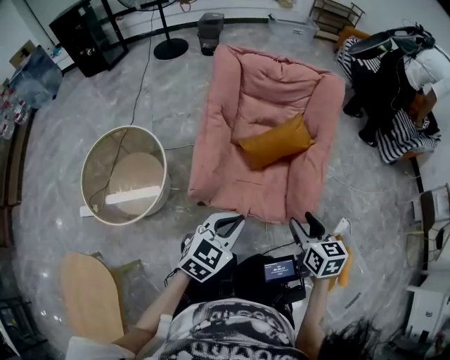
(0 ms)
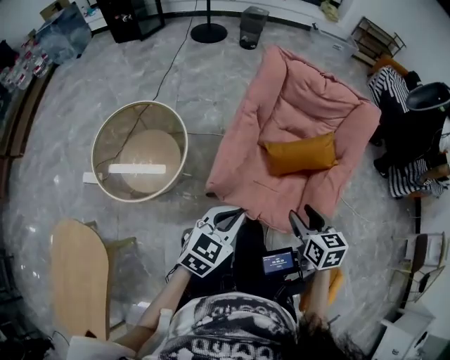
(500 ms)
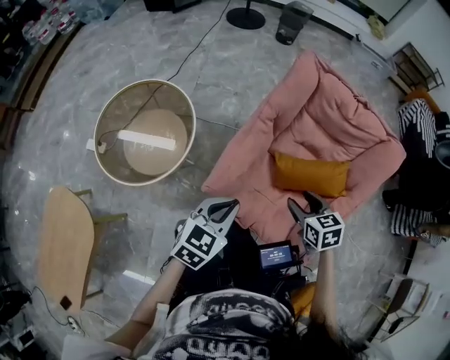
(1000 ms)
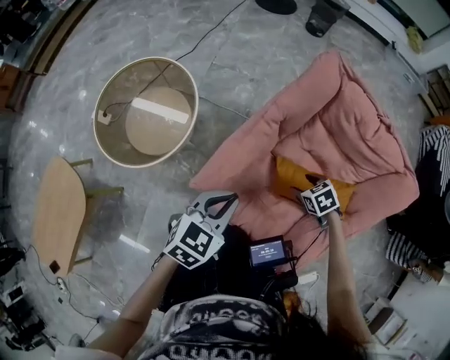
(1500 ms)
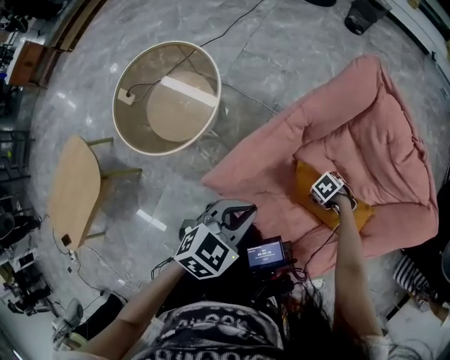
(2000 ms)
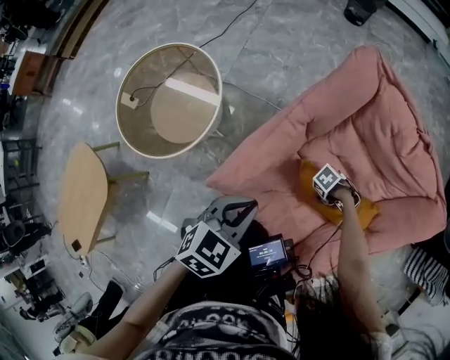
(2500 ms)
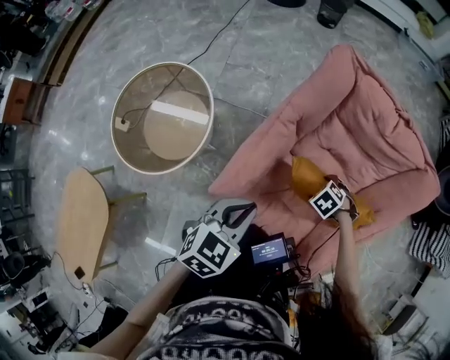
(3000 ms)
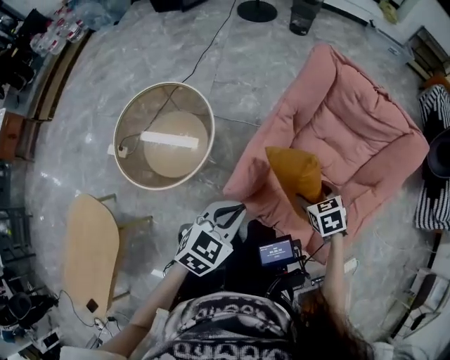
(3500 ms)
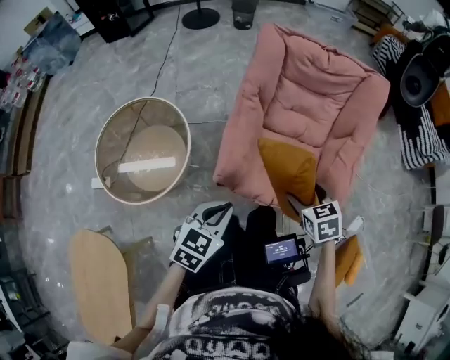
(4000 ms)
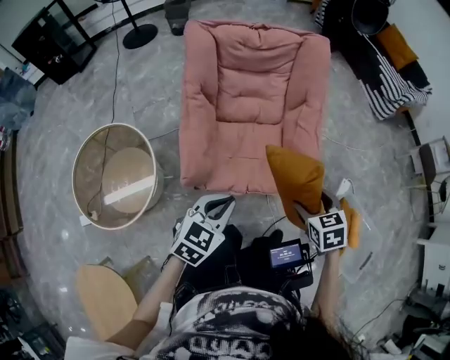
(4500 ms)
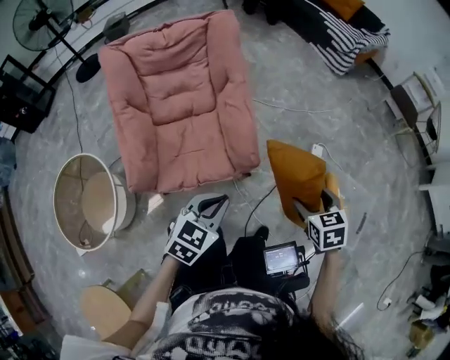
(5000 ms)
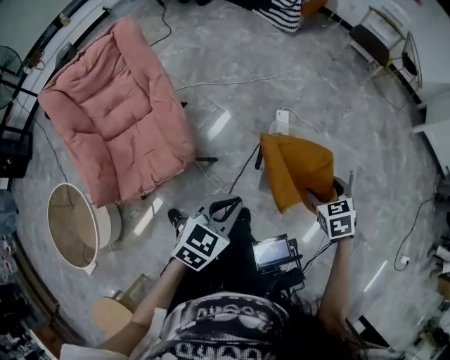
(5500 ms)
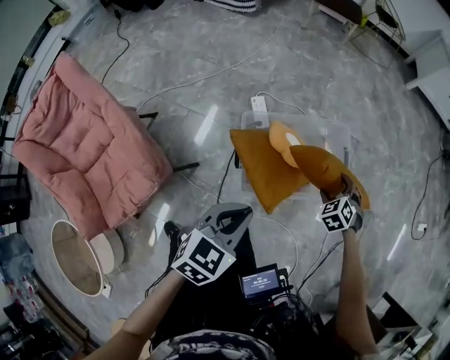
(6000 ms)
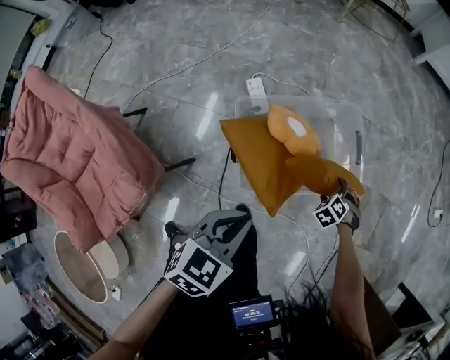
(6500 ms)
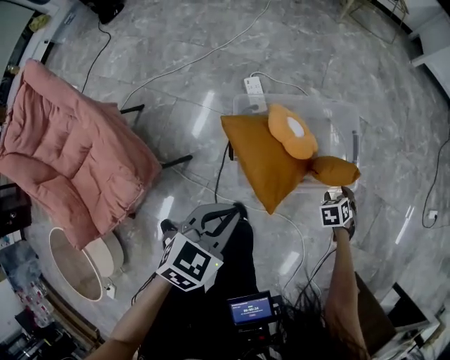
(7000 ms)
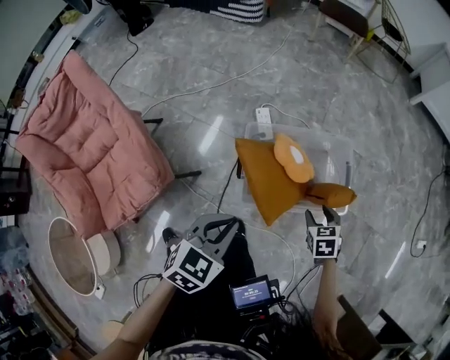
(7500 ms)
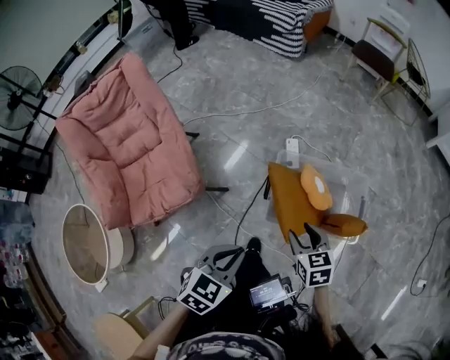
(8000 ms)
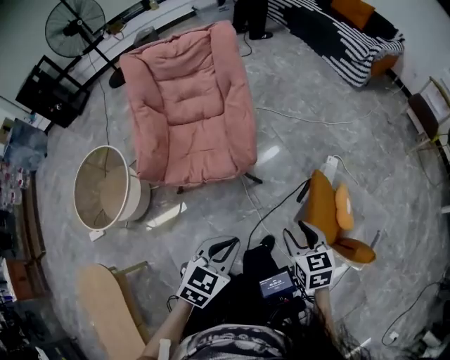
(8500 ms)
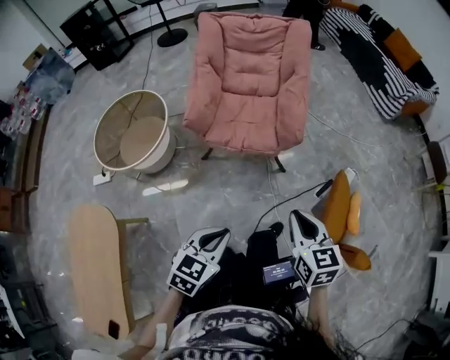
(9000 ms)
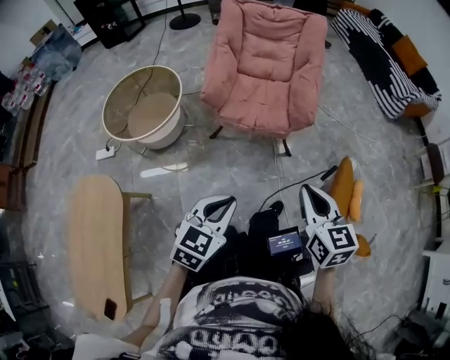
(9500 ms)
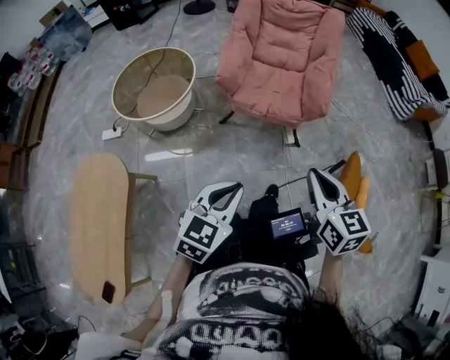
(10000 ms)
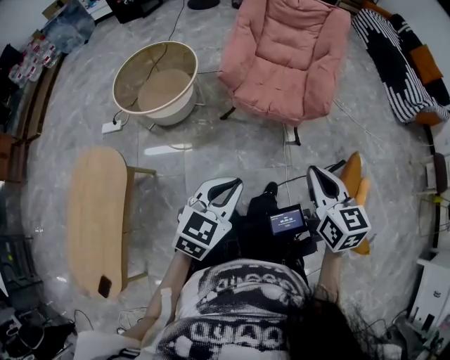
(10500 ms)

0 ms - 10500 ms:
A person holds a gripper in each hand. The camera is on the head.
0 ms - 2000 ms: The right gripper ends up approximately 50 cm from where it was, tilts its fingers approximately 40 degrees downward, and opens up. The left gripper changes place by approximately 25 cm, and swivels roughly 40 degrees.
2000 ms - 4000 ms: The left gripper moves roughly 25 cm, and swivels about 20 degrees. Meanwhile the right gripper moves roughly 40 cm, and rotates about 70 degrees.
4000 ms - 6500 ms: Both grippers are carried about 80 cm. The left gripper rotates about 70 degrees. Meanwhile the right gripper changes its angle by about 60 degrees.
6500 ms - 8500 ms: The right gripper changes place by some 50 cm, tips its fingers upward by roughly 30 degrees, and closes up. Meanwhile the left gripper moves roughly 30 cm, and turns by roughly 50 degrees.
8500 ms - 10500 ms: The right gripper heads to the left, upward and backward, covering about 30 cm, turns by some 20 degrees, and closes its fingers; the left gripper heads to the left and backward, covering about 30 cm, and turns by some 30 degrees.

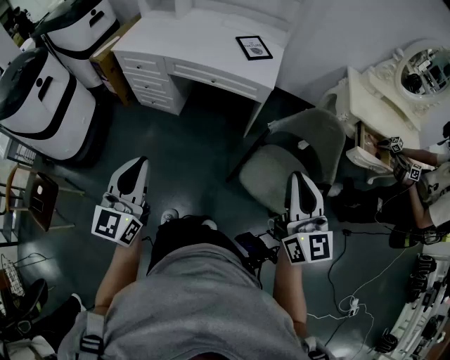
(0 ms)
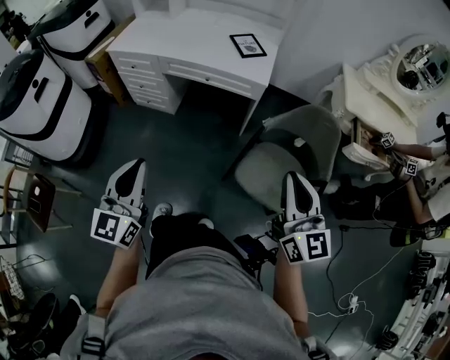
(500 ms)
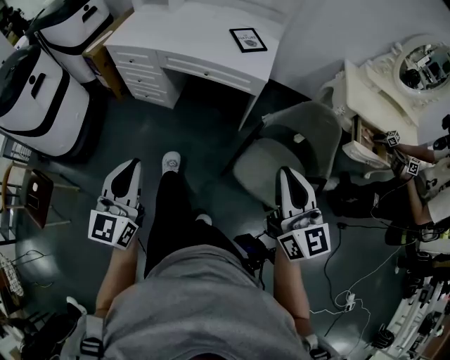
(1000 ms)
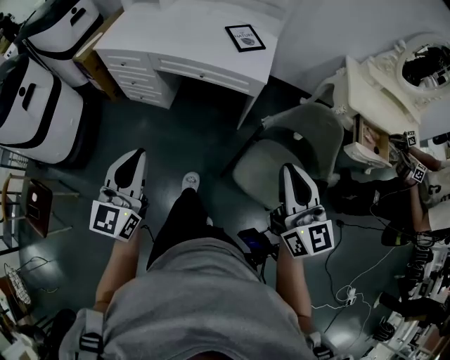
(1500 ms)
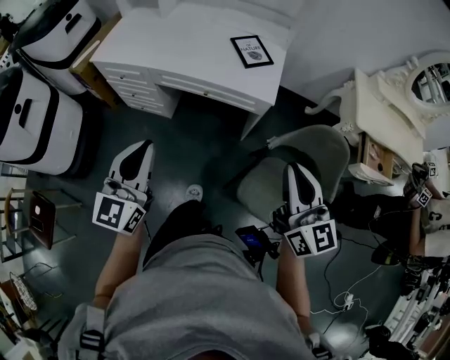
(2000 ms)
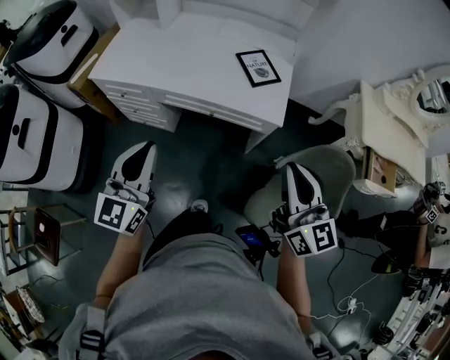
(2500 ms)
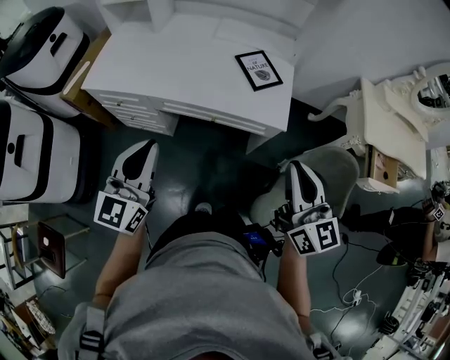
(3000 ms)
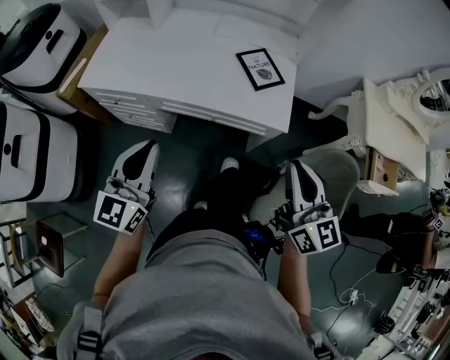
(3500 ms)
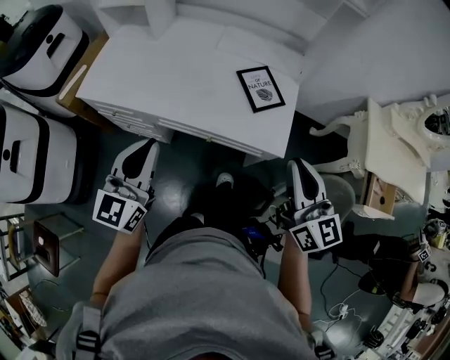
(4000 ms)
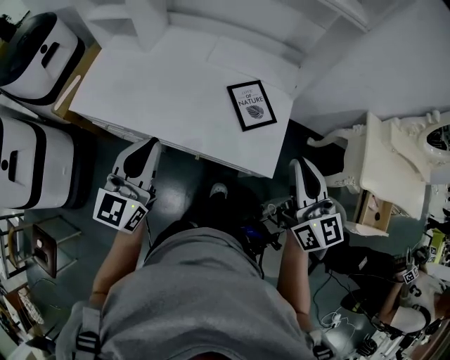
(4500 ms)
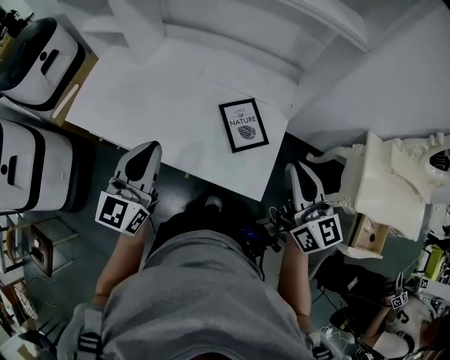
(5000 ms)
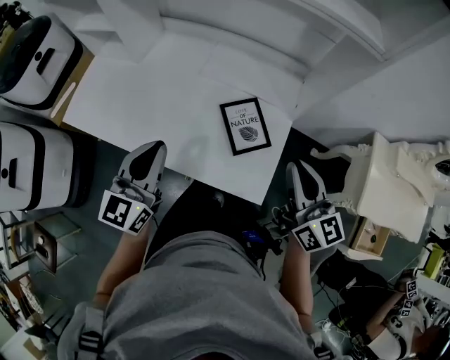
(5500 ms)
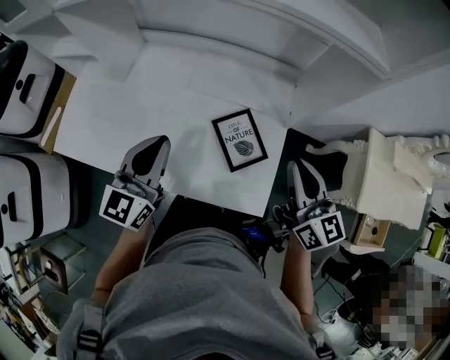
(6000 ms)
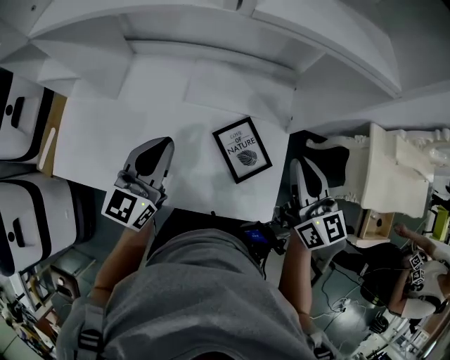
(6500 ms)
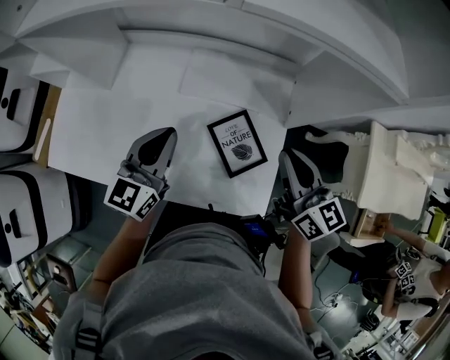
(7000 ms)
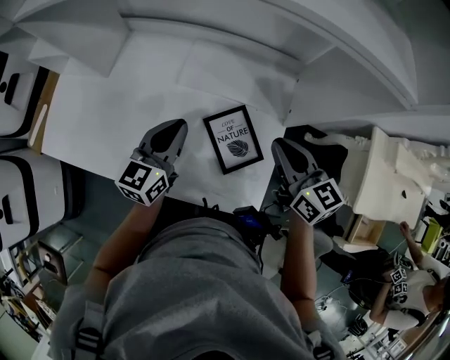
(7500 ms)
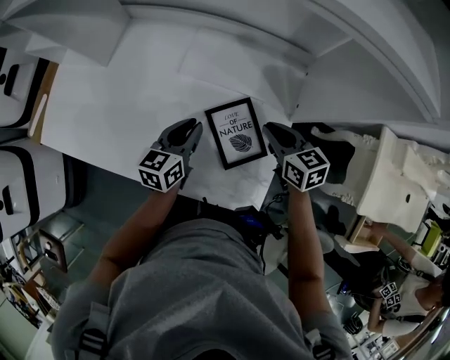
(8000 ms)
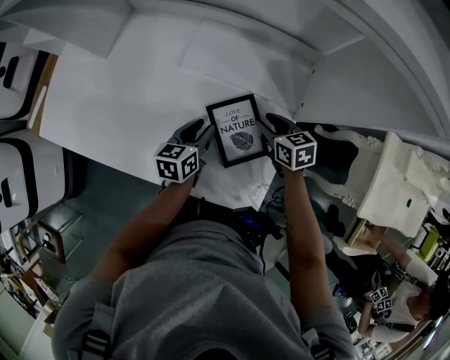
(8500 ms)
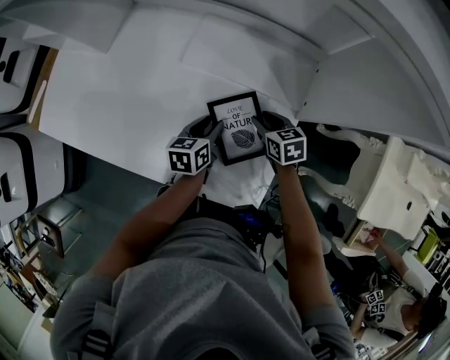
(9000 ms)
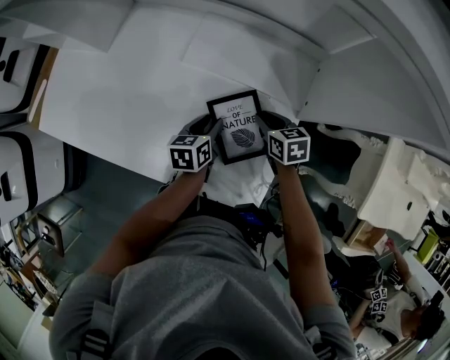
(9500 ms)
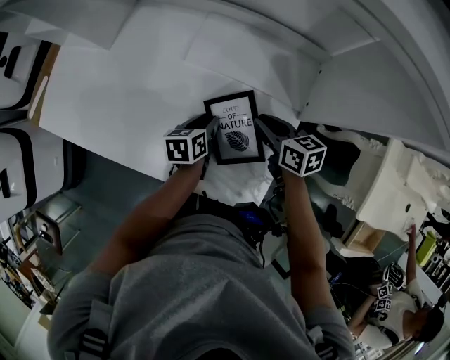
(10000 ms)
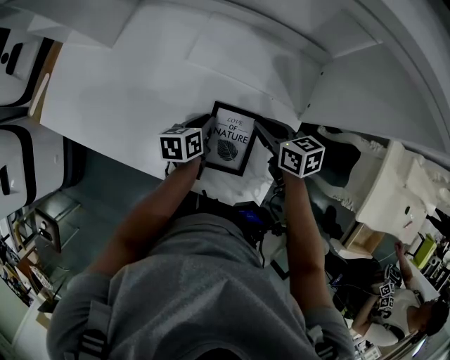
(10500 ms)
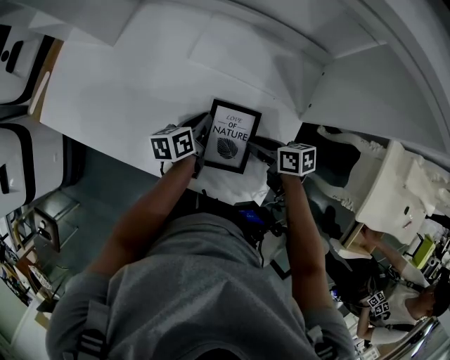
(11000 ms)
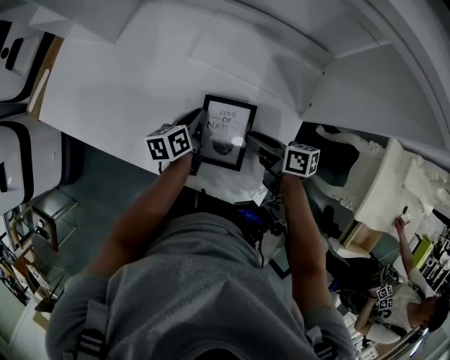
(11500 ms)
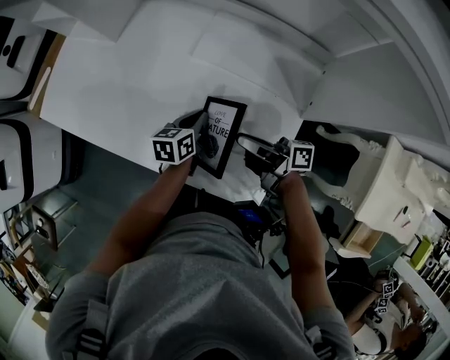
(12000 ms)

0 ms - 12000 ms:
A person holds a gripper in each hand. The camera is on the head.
0 ms - 2000 ms: The grippers both shift forward by some 20 cm.
2000 ms - 4000 ms: The two grippers go some 25 cm forward.
4000 ms - 6000 ms: The right gripper is displaced forward by about 25 cm, while the left gripper travels forward and to the right by some 30 cm.
6000 ms - 8000 ms: The right gripper moves downward and forward, approximately 25 cm, and changes its angle by some 30 degrees. Meanwhile the left gripper moves downward and to the right, roughly 20 cm, and swivels some 30 degrees.
8000 ms - 10000 ms: The left gripper moves downward, approximately 10 cm, and turns by approximately 30 degrees.
10000 ms - 12000 ms: The left gripper closes up; the right gripper shifts approximately 10 cm to the left, tips its fingers upward by about 40 degrees, and opens, then closes again.

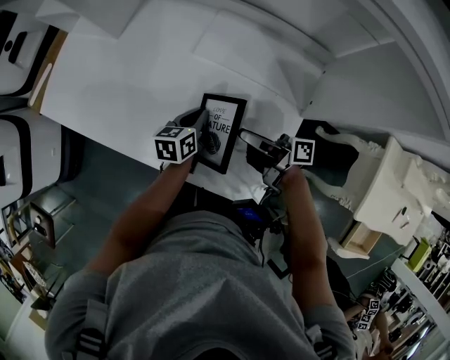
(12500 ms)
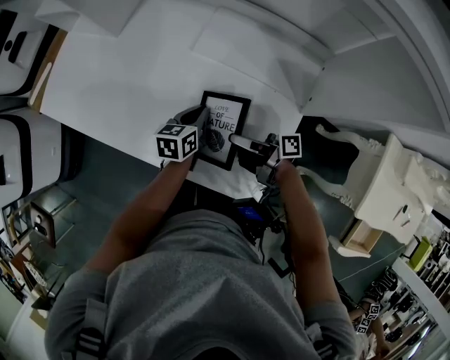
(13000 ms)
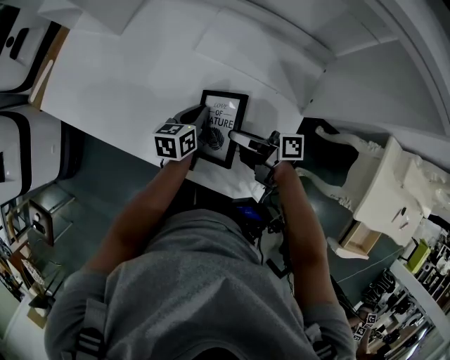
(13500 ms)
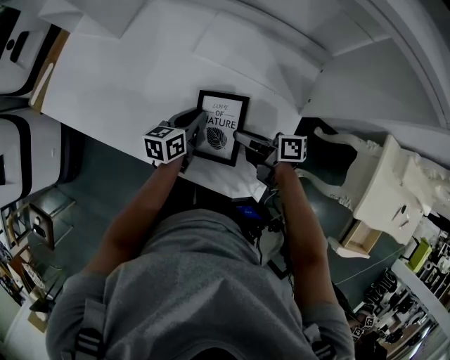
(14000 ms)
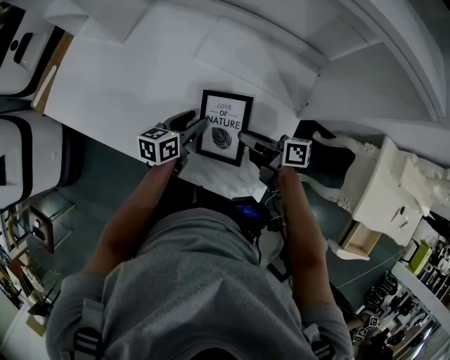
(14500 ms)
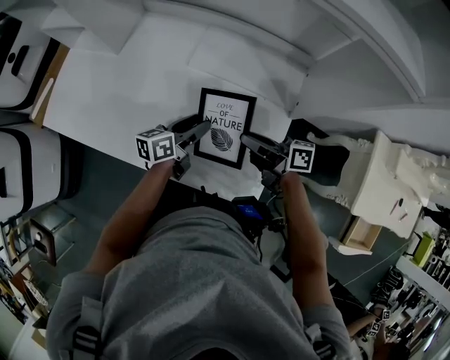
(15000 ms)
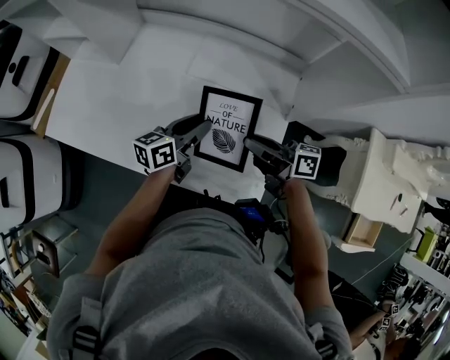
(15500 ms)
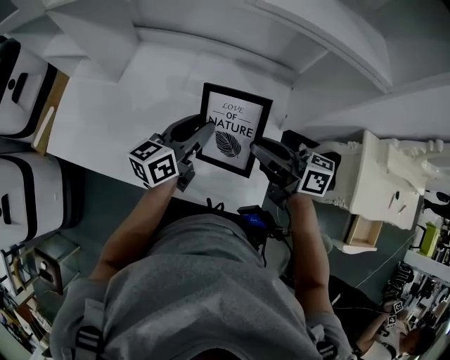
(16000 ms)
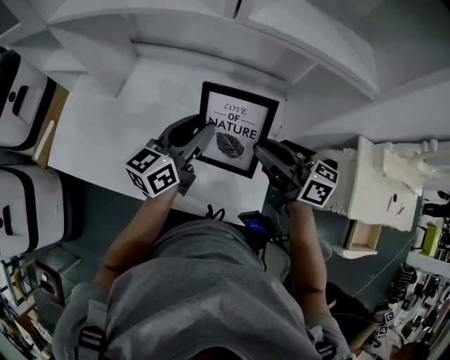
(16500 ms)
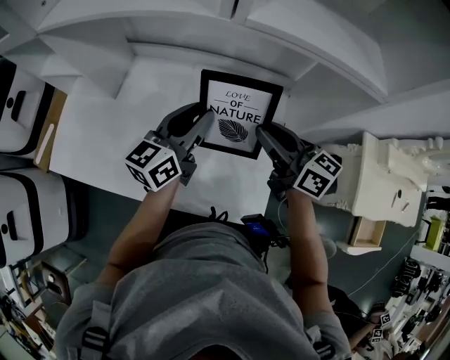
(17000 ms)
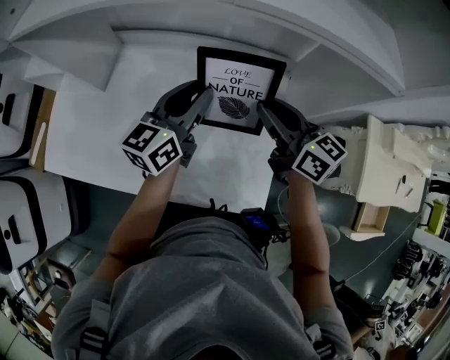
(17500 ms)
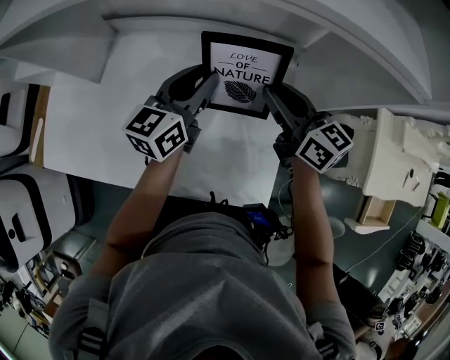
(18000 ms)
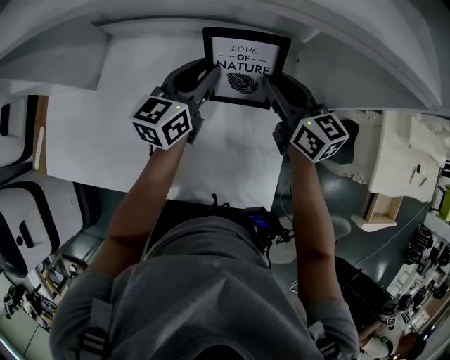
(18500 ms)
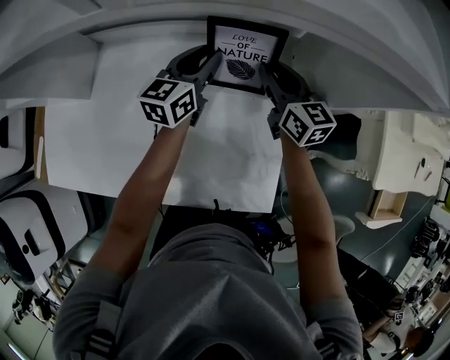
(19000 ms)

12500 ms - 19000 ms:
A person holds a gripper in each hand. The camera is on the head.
12500 ms - 14500 ms: The left gripper opens its fingers.
14500 ms - 17000 ms: Both grippers travel together upward, about 25 cm. The left gripper swivels approximately 30 degrees; the right gripper changes its angle by approximately 50 degrees.
17000 ms - 19000 ms: The grippers both shift forward, downward and to the right by some 20 cm. The right gripper rotates some 30 degrees.
